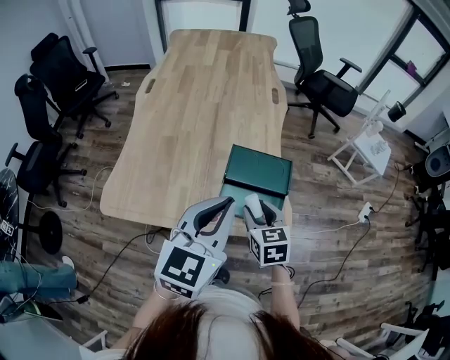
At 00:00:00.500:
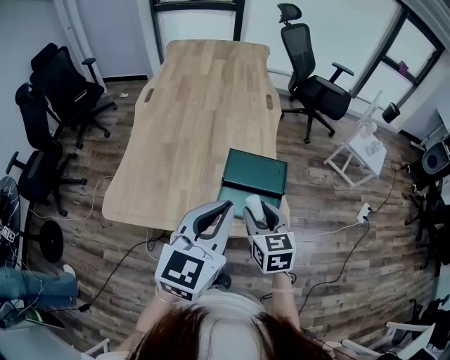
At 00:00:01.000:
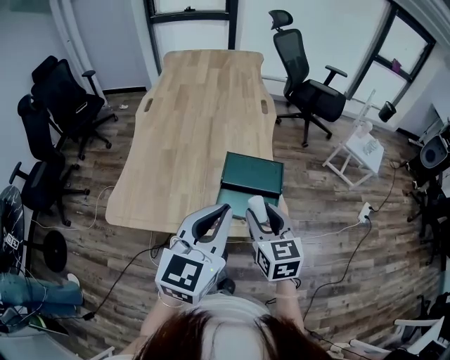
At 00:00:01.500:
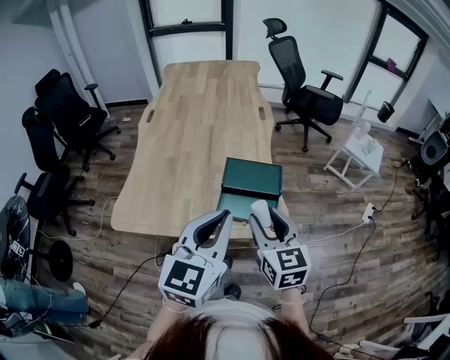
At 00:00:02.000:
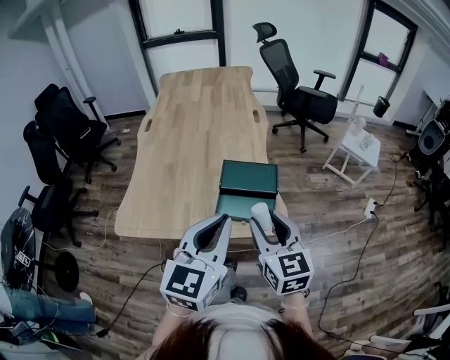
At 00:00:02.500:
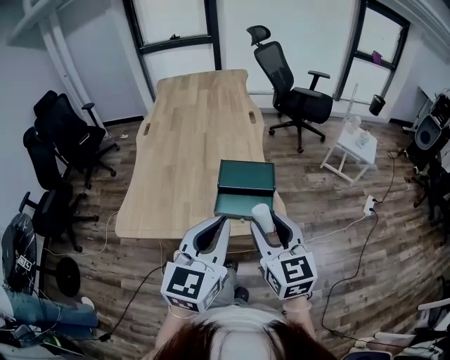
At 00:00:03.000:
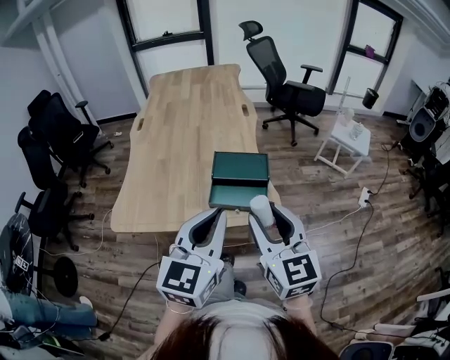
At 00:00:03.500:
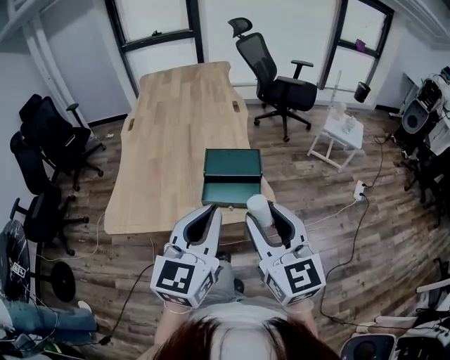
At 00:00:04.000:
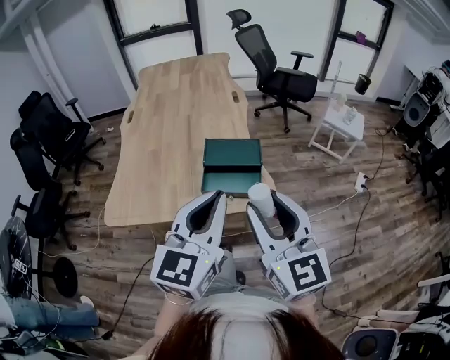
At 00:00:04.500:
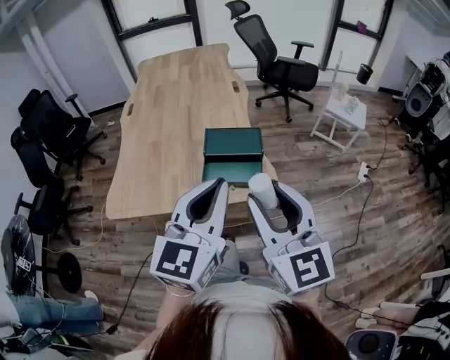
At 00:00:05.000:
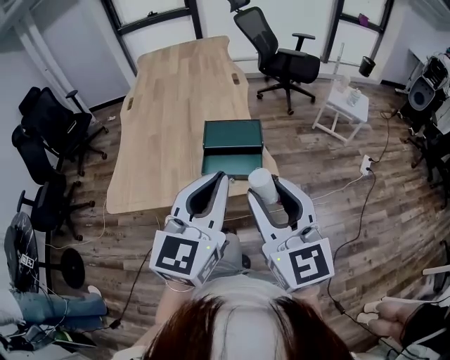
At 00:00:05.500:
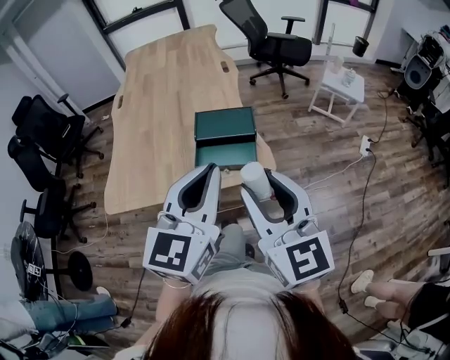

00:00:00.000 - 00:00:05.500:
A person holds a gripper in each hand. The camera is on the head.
00:00:00.000 - 00:00:02.000: The left gripper travels backward by roughly 10 cm. The right gripper is displaced upward and backward by some 20 cm, and changes its angle by approximately 20 degrees.
00:00:02.000 - 00:00:03.500: The right gripper travels backward and upward by about 10 cm.
00:00:03.500 - 00:00:05.500: The grippers make only small movements.

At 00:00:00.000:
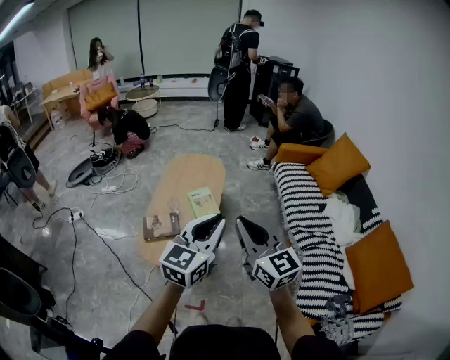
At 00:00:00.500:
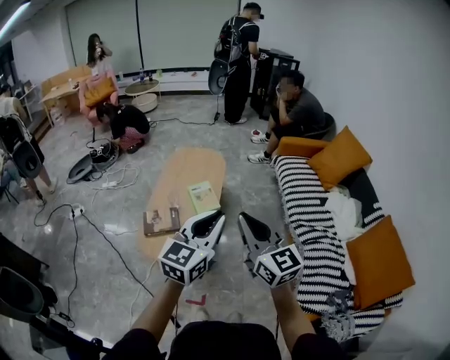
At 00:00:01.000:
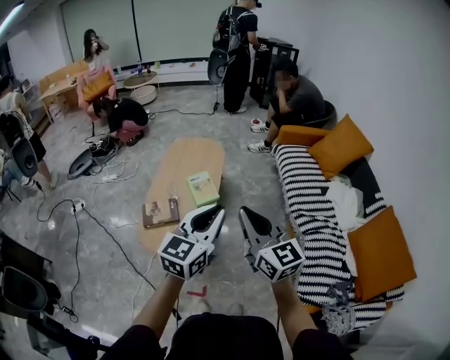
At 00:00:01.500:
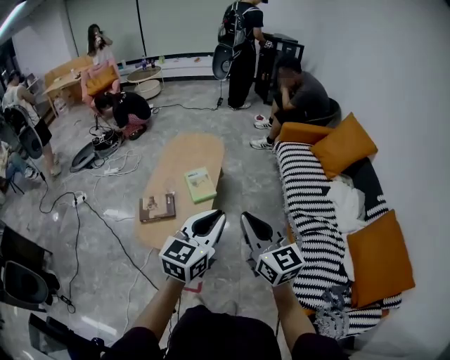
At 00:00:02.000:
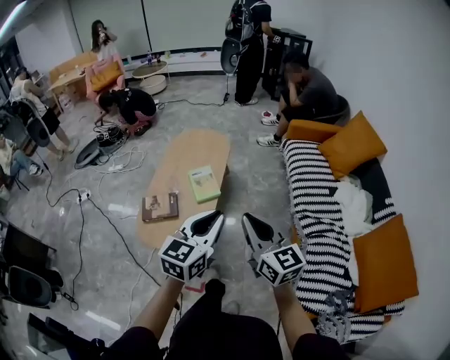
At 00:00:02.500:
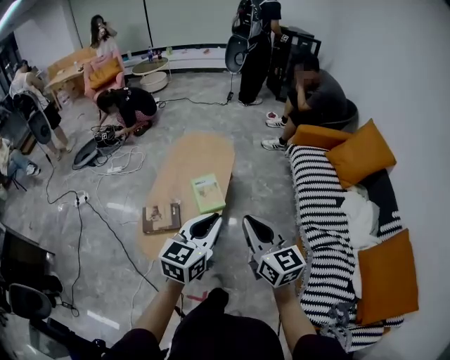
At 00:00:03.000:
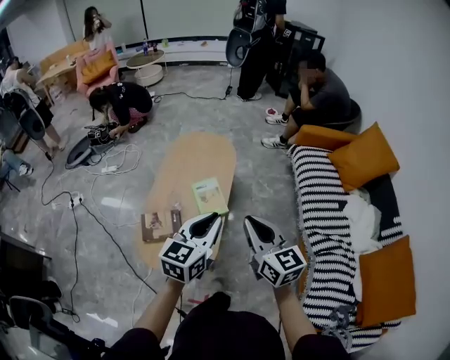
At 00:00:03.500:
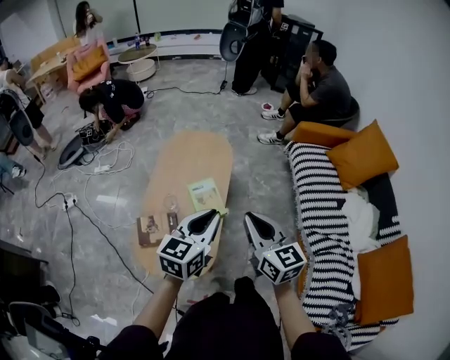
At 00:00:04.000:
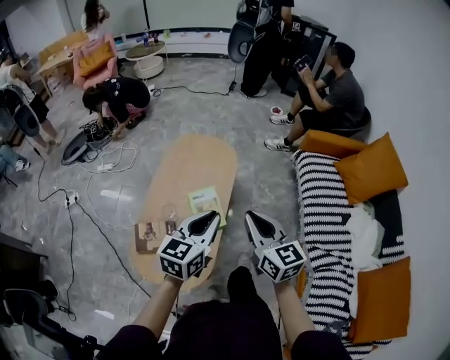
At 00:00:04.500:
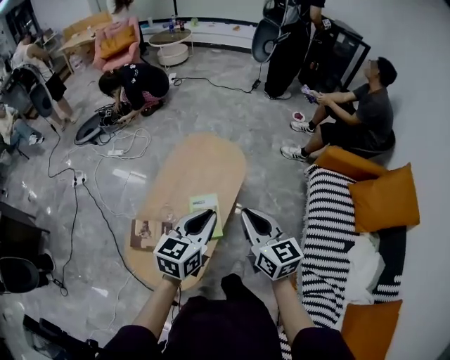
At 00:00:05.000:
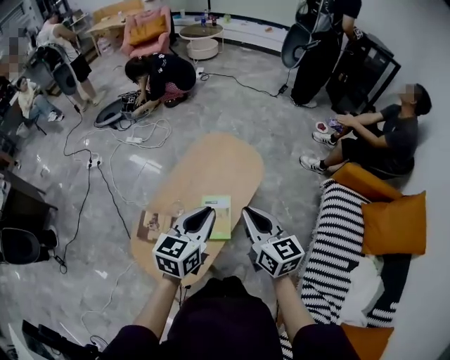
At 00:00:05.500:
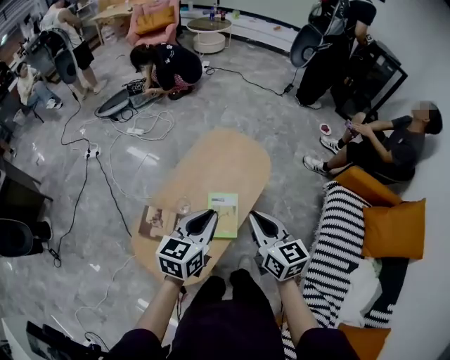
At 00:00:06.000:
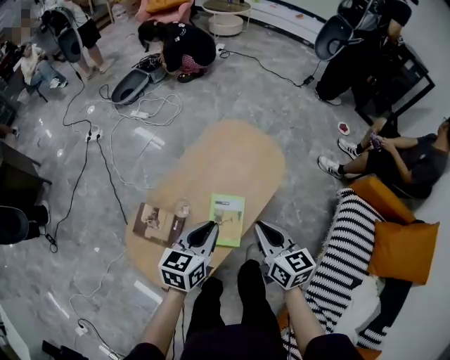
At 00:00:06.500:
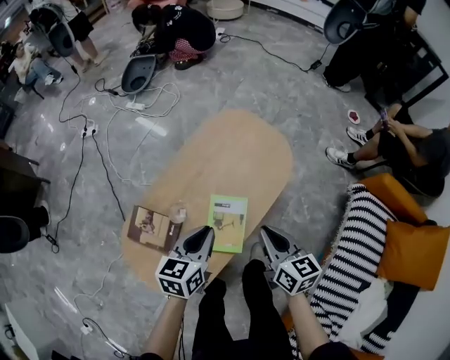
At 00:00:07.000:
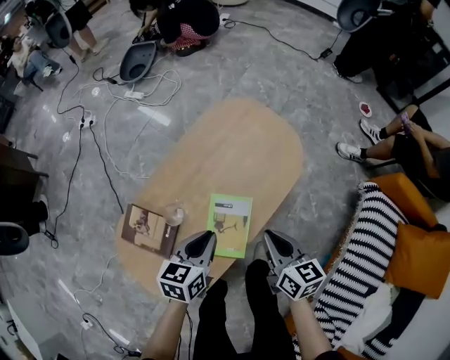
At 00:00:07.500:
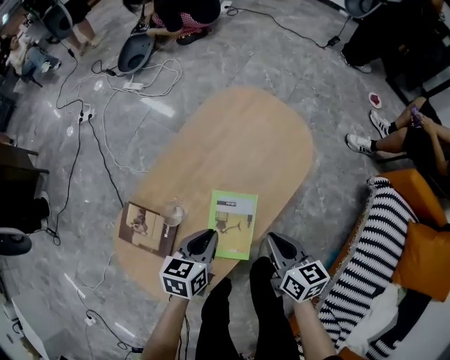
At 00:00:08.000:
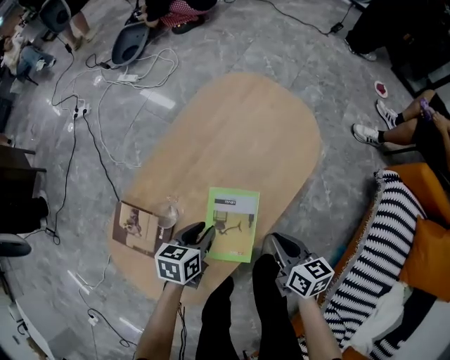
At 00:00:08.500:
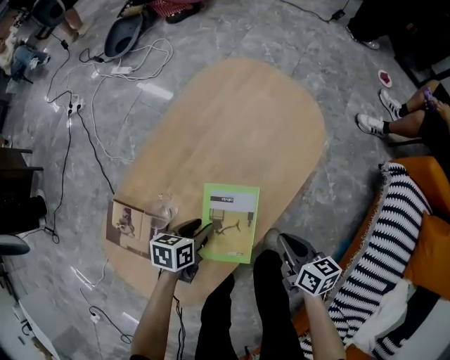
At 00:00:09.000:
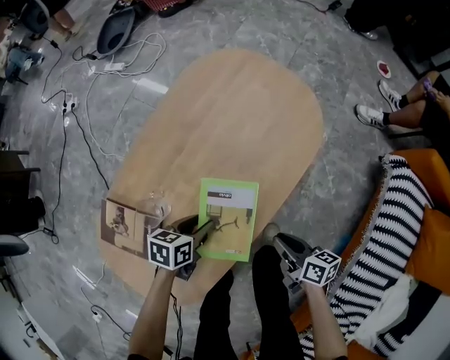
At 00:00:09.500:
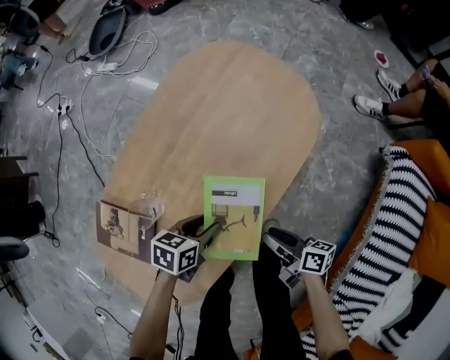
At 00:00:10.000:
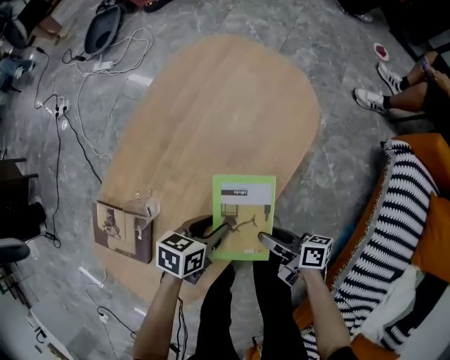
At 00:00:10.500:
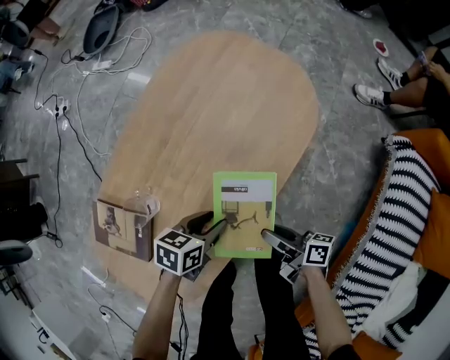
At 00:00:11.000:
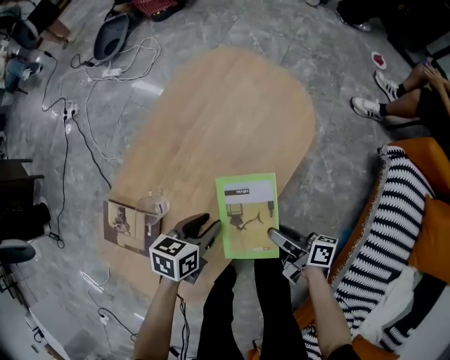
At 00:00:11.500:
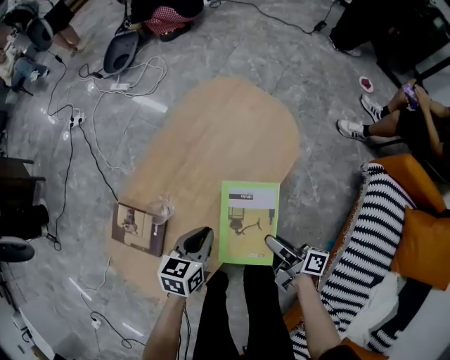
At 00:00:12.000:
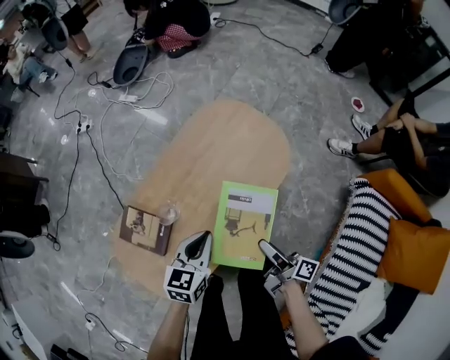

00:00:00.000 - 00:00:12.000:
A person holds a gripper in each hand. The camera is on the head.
00:00:00.000 - 00:00:02.000: The left gripper is displaced downward and to the right by roughly 10 cm. Meanwhile the right gripper travels to the right and downward by about 15 cm.
00:00:02.000 - 00:00:04.000: The two grippers go some 35 cm forward.
00:00:04.000 - 00:00:06.000: The right gripper ends up about 25 cm from where it was, and changes its angle by roughly 30 degrees, while the left gripper ends up some 25 cm from where it was, and swivels approximately 30 degrees.
00:00:06.000 - 00:00:08.000: The grippers both shift downward by some 35 cm. The left gripper rotates approximately 30 degrees. The right gripper rotates approximately 20 degrees.
00:00:08.000 - 00:00:10.000: The left gripper moves to the right and downward, some 10 cm. The right gripper is displaced downward by about 15 cm, changes its angle by some 40 degrees, and opens up.
00:00:10.000 - 00:00:12.000: The grippers both shift upward by some 30 cm. The left gripper rotates some 40 degrees, and closes up. Meanwhile the right gripper turns by some 20 degrees.

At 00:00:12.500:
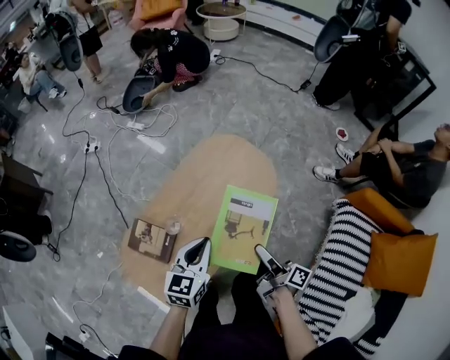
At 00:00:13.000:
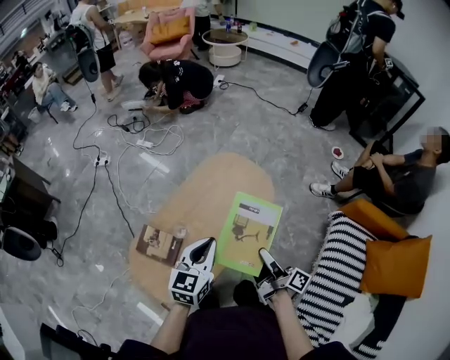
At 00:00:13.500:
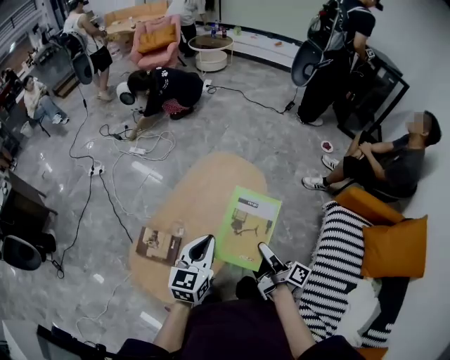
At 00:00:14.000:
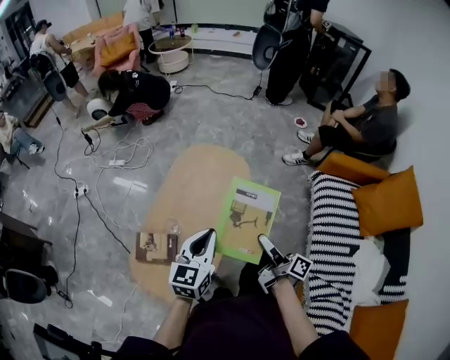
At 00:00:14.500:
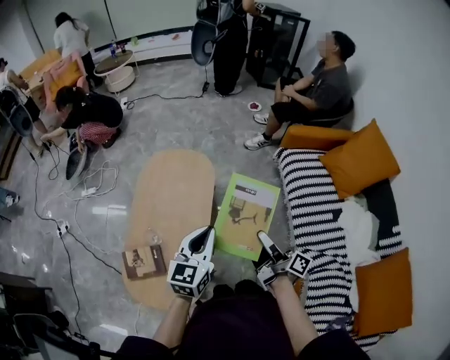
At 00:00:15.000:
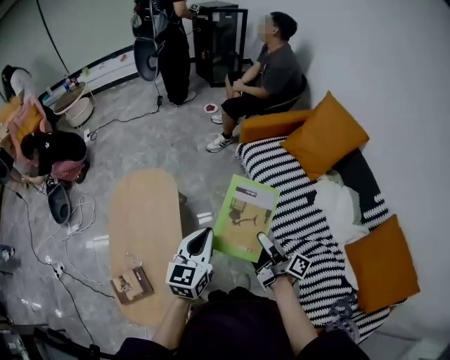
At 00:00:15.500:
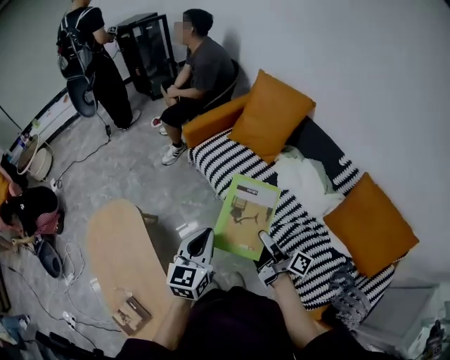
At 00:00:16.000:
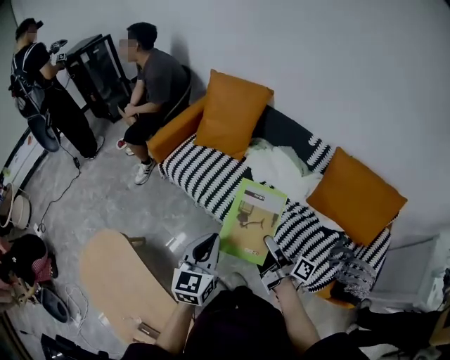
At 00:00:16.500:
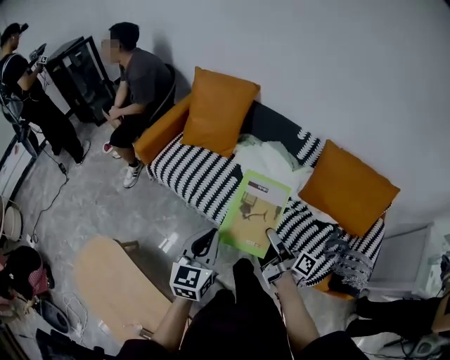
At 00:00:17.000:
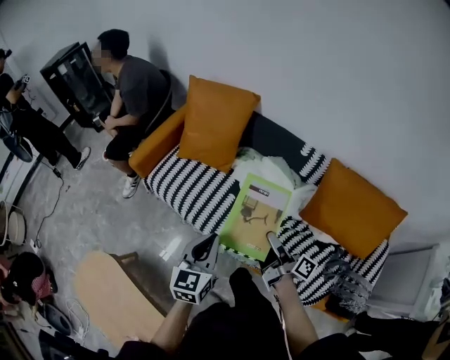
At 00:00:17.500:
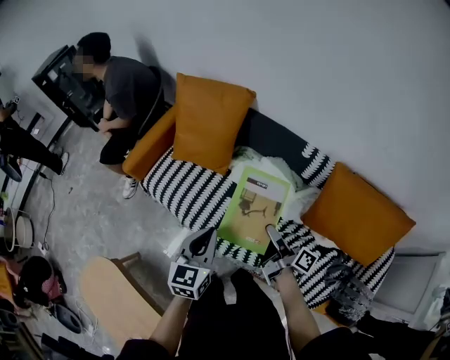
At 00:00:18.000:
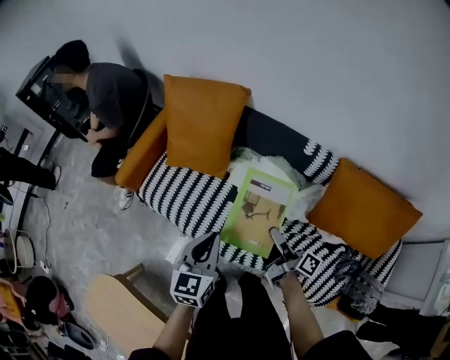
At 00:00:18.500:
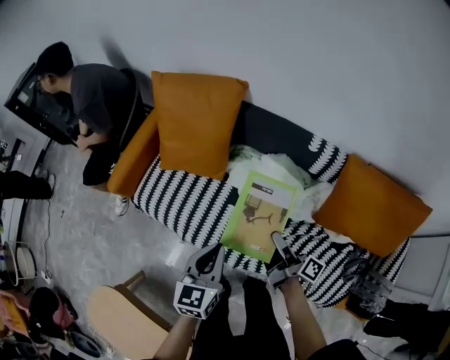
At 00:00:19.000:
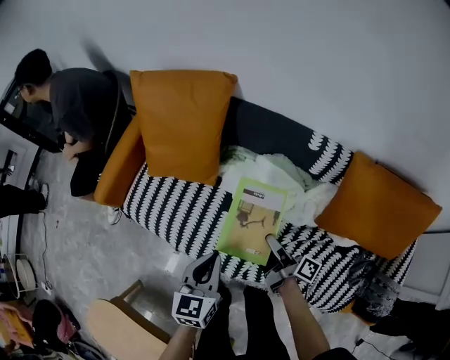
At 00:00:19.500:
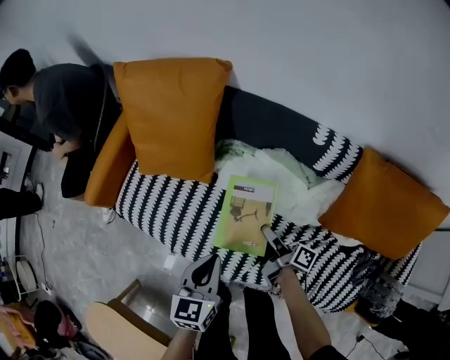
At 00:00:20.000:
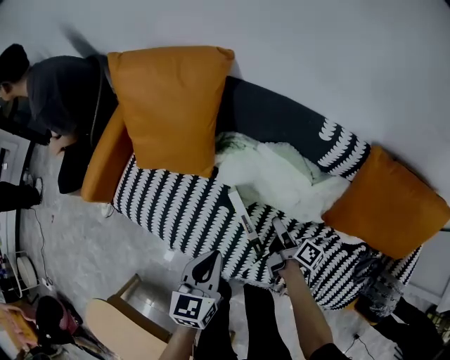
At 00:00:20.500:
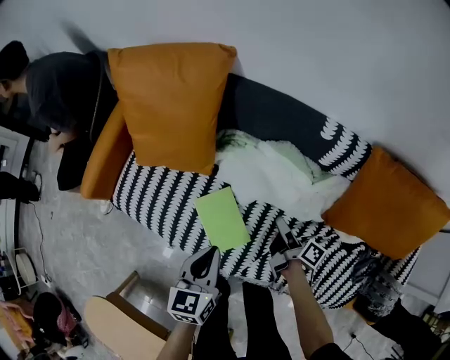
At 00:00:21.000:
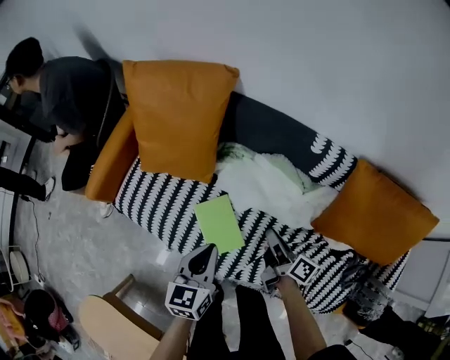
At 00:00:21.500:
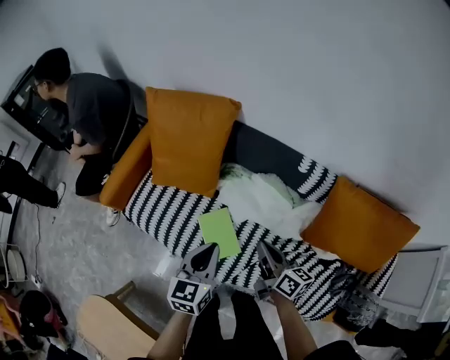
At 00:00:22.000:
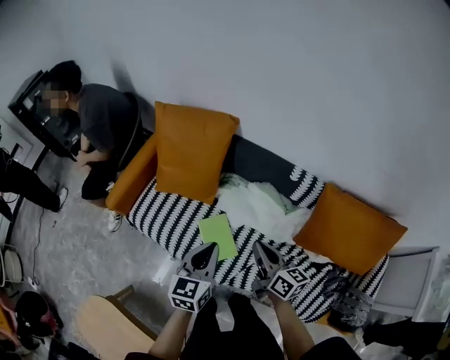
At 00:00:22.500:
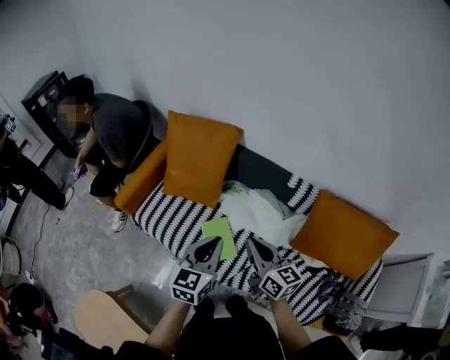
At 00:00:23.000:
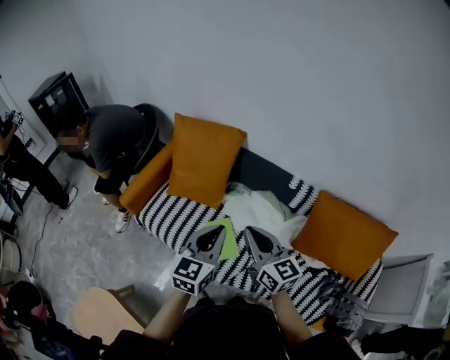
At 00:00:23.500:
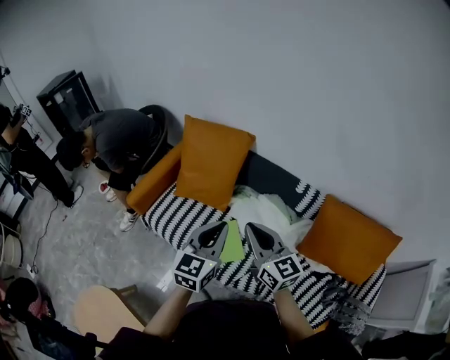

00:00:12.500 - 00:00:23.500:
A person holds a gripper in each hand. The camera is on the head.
00:00:12.500 - 00:00:14.500: The right gripper moves some 25 cm, and changes its angle by about 40 degrees; the left gripper shifts by some 25 cm, and rotates about 30 degrees.
00:00:14.500 - 00:00:16.000: The left gripper moves roughly 40 cm, and turns by roughly 50 degrees; the right gripper moves approximately 35 cm, and rotates roughly 50 degrees.
00:00:16.000 - 00:00:18.000: The grippers both shift forward by about 30 cm.
00:00:18.000 - 00:00:20.000: The grippers both shift downward by some 25 cm. The right gripper swivels approximately 20 degrees, and opens up.
00:00:20.000 - 00:00:21.500: The right gripper moves upward, some 25 cm, changes its angle by some 40 degrees, and closes. The left gripper travels upward by roughly 15 cm.
00:00:21.500 - 00:00:23.500: Both grippers move upward, roughly 20 cm. The right gripper rotates around the line of its fingers by some 40 degrees, counterclockwise from behind.
